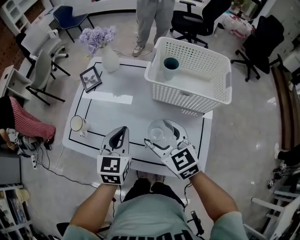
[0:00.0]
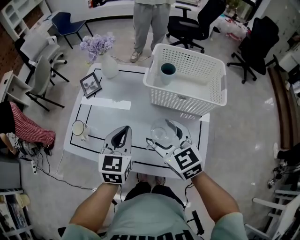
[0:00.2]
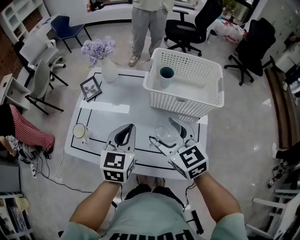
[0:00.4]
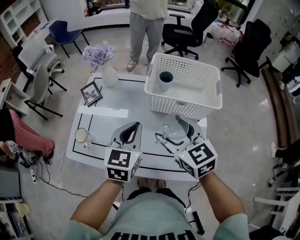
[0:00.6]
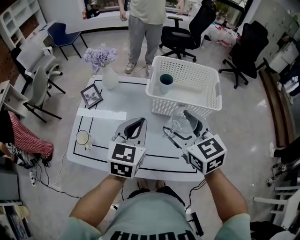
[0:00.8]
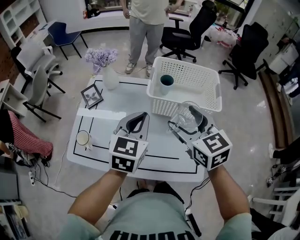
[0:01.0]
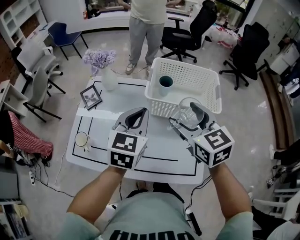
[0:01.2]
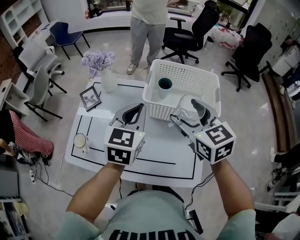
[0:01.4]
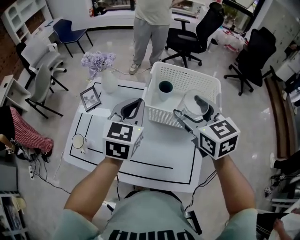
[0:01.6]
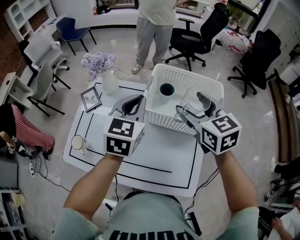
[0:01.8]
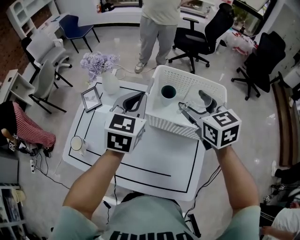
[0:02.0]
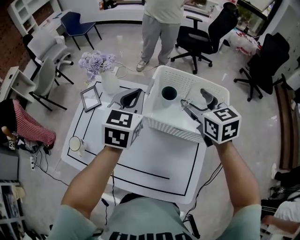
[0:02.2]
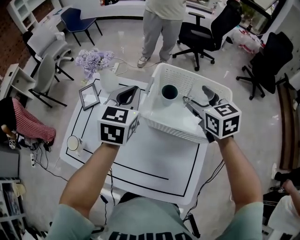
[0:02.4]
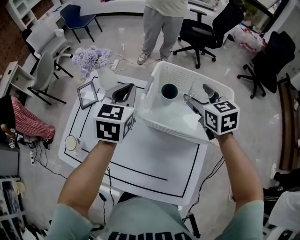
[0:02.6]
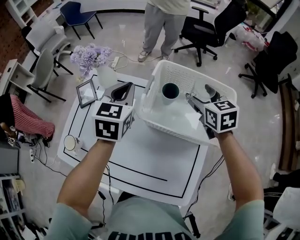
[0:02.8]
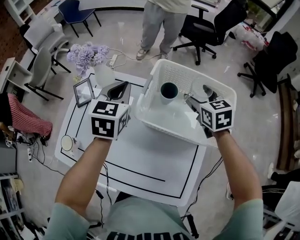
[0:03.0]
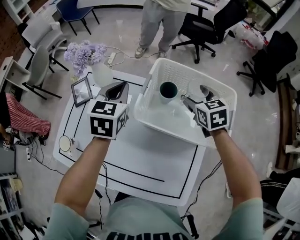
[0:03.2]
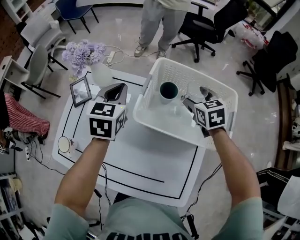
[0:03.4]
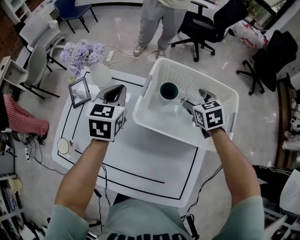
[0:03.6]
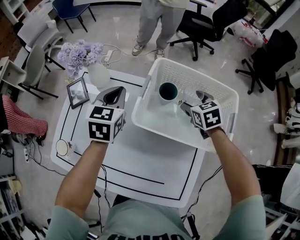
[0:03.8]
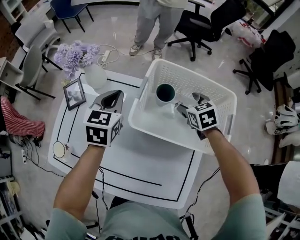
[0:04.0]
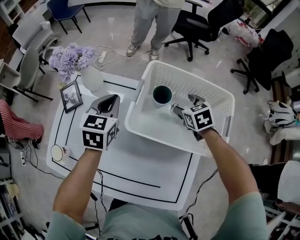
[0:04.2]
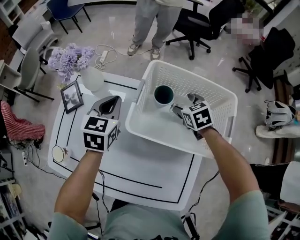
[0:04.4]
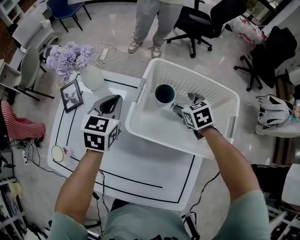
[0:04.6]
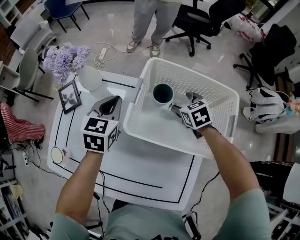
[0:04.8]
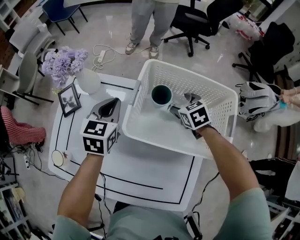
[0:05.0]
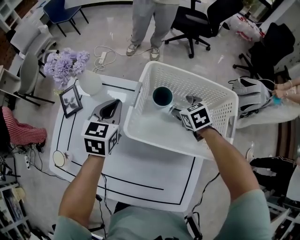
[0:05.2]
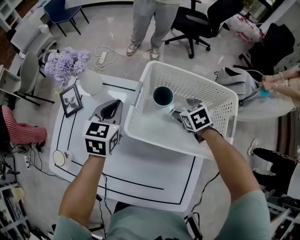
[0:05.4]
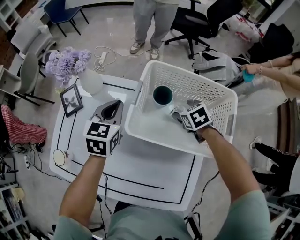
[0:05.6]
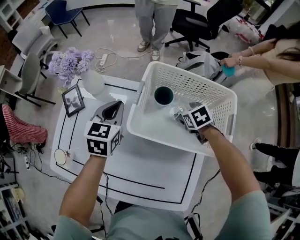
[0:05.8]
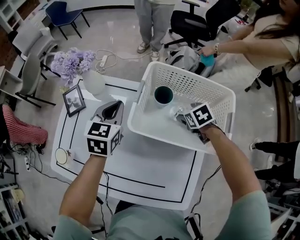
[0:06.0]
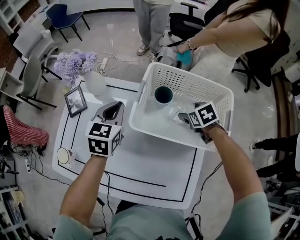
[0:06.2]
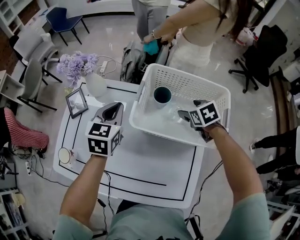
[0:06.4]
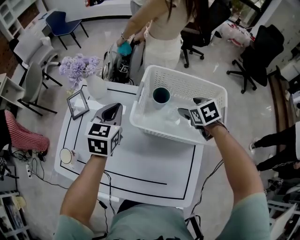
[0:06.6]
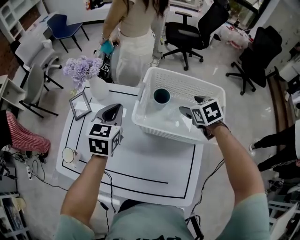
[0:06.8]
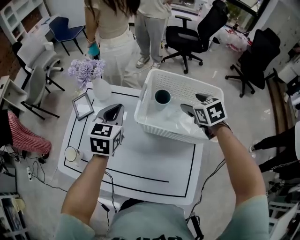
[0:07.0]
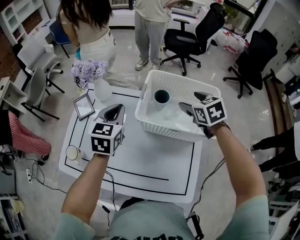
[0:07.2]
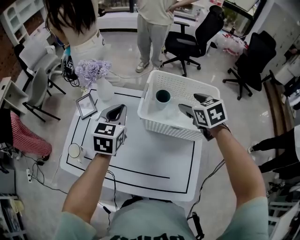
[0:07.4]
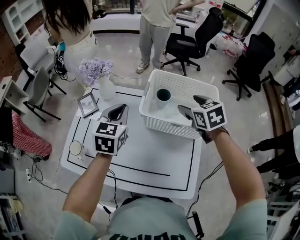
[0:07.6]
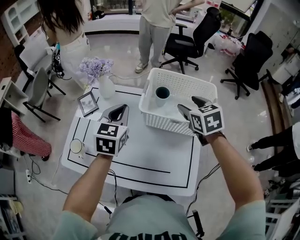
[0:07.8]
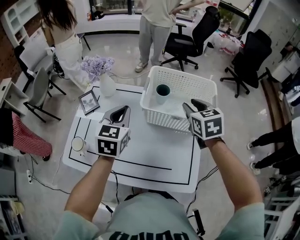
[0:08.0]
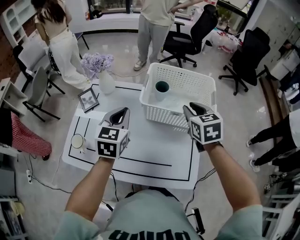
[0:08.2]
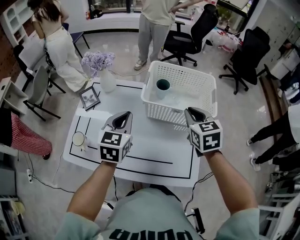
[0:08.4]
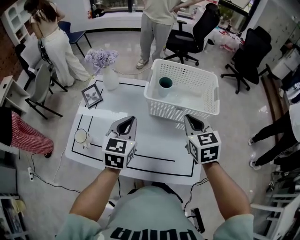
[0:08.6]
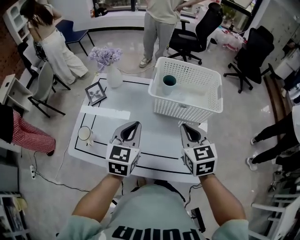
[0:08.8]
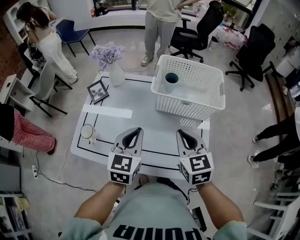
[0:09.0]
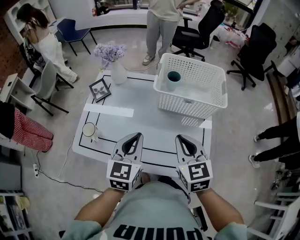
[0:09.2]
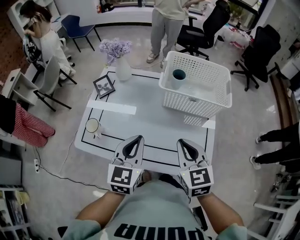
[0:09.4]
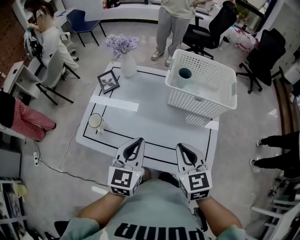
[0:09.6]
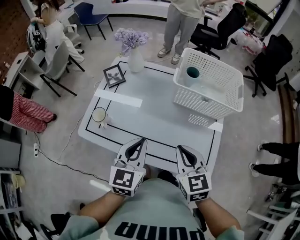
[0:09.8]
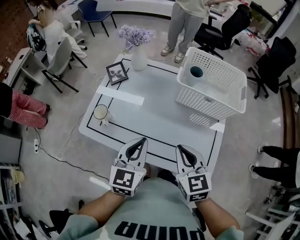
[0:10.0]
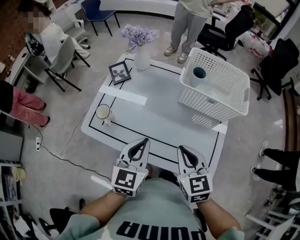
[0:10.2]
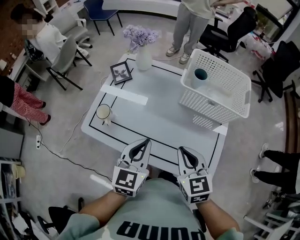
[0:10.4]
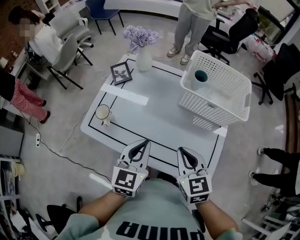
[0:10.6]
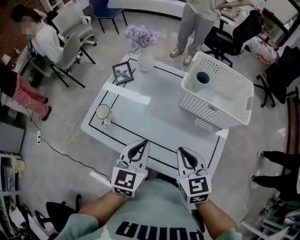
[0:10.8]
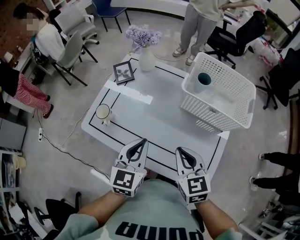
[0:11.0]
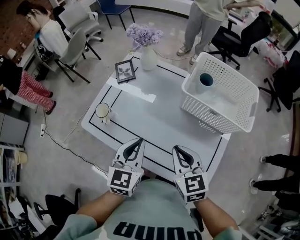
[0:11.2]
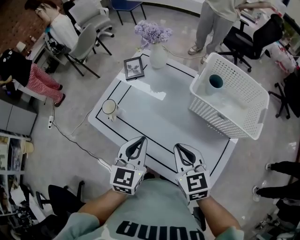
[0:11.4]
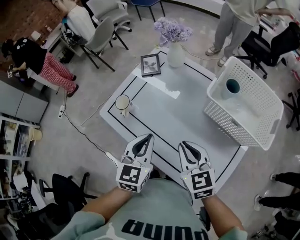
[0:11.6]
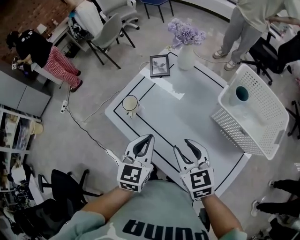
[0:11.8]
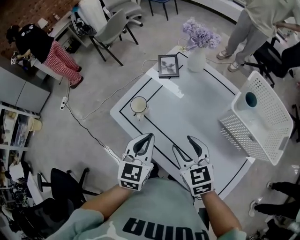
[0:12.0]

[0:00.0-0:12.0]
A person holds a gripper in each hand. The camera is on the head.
0:00.0 to 0:01.6: The left gripper is displaced upward, forward and to the right by about 20 cm; the right gripper shifts approximately 25 cm upward, to the right and forward.
0:01.6 to 0:03.0: The right gripper heads forward, downward and to the right, covering about 25 cm, while the left gripper heads forward and downward, covering some 15 cm.
0:03.0 to 0:04.4: The left gripper is displaced downward by roughly 10 cm. Meanwhile the right gripper shifts about 10 cm downward.
0:04.4 to 0:06.0: The right gripper changes place by some 5 cm.
0:06.0 to 0:07.6: The right gripper heads upward, covering some 20 cm, and changes its angle by about 20 degrees; the left gripper goes roughly 15 cm upward and backward.
0:07.6 to 0:09.0: Both grippers travel together backward, about 20 cm. The right gripper closes.
0:09.0 to 0:10.4: The left gripper goes about 5 cm backward, while the right gripper heads backward and to the left, covering roughly 10 cm.
0:10.4 to 0:12.0: The right gripper ends up approximately 15 cm from where it was, swivels about 30 degrees, and opens up. The left gripper ends up some 10 cm from where it was, and turns by approximately 20 degrees.

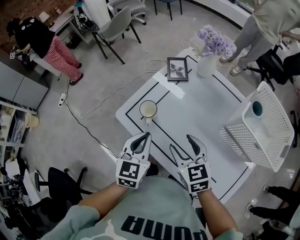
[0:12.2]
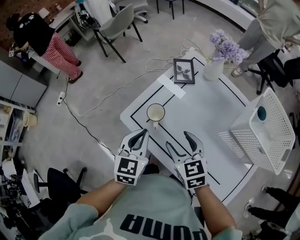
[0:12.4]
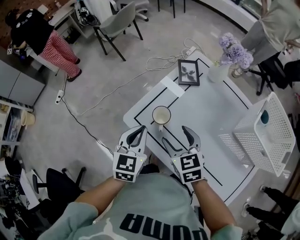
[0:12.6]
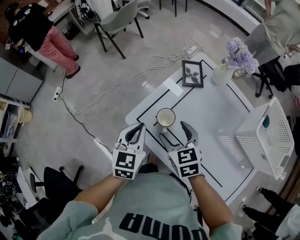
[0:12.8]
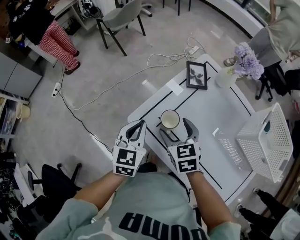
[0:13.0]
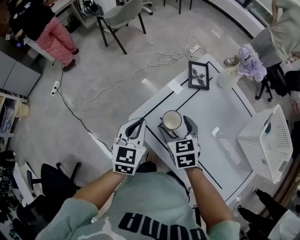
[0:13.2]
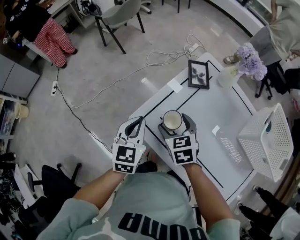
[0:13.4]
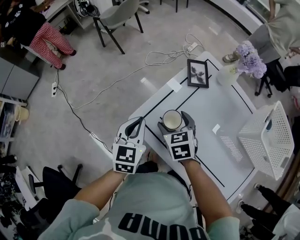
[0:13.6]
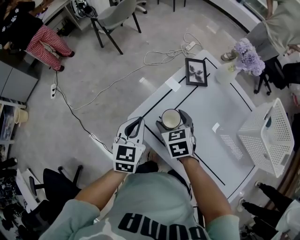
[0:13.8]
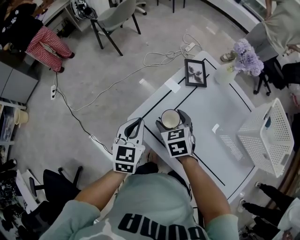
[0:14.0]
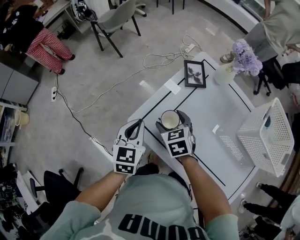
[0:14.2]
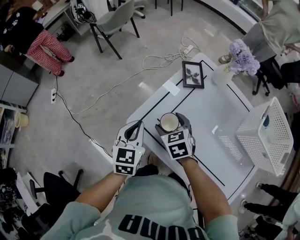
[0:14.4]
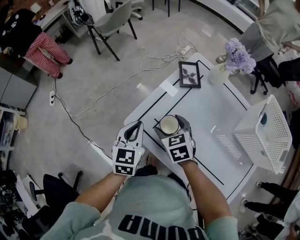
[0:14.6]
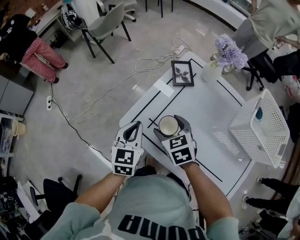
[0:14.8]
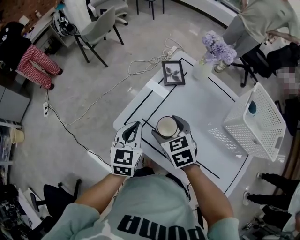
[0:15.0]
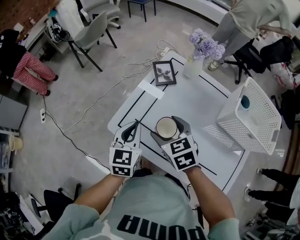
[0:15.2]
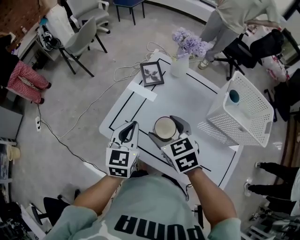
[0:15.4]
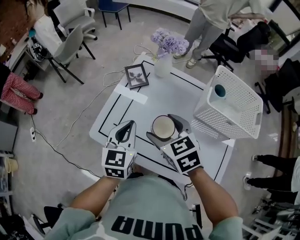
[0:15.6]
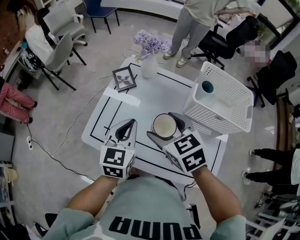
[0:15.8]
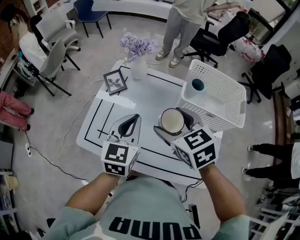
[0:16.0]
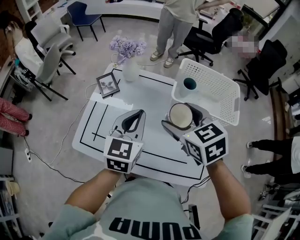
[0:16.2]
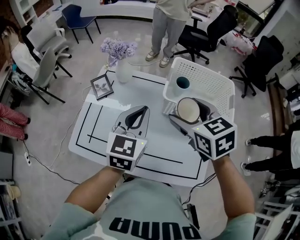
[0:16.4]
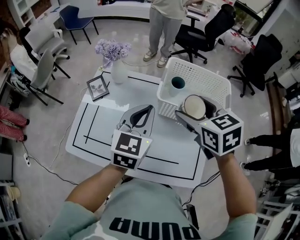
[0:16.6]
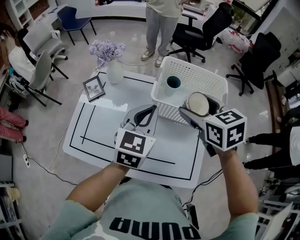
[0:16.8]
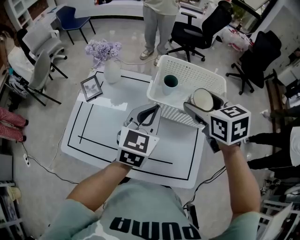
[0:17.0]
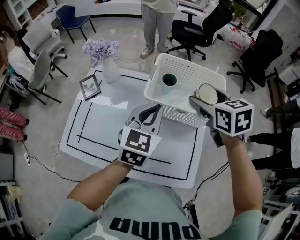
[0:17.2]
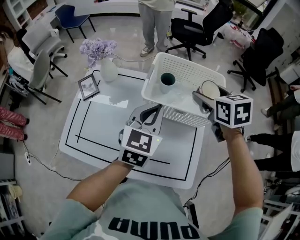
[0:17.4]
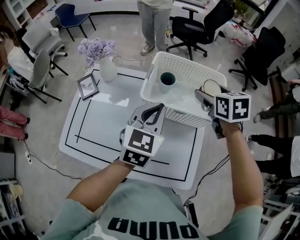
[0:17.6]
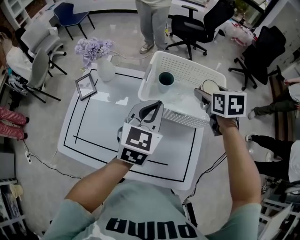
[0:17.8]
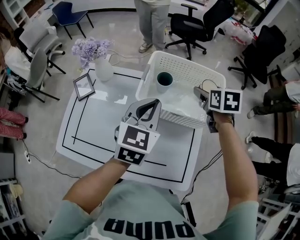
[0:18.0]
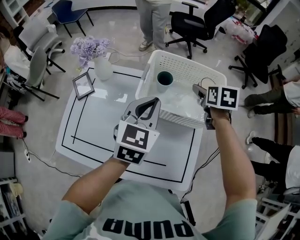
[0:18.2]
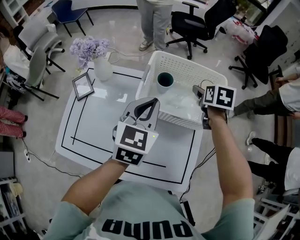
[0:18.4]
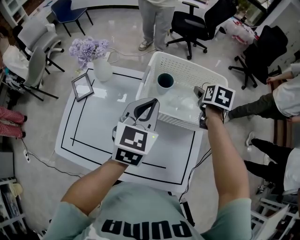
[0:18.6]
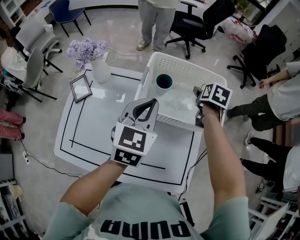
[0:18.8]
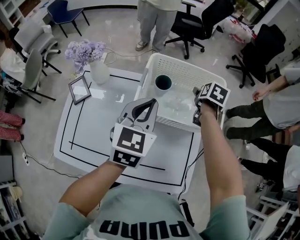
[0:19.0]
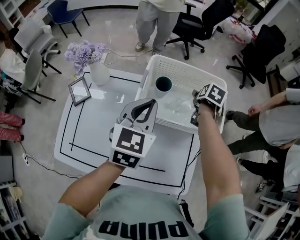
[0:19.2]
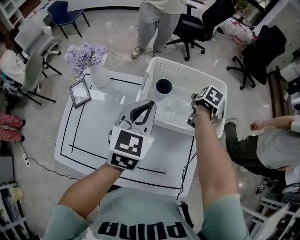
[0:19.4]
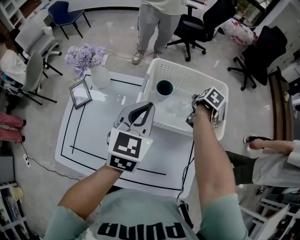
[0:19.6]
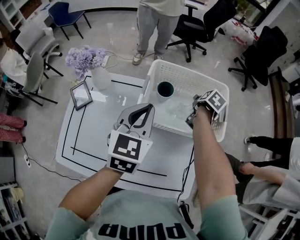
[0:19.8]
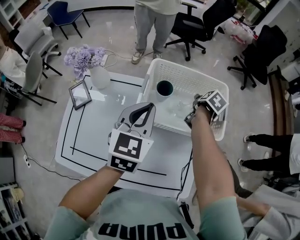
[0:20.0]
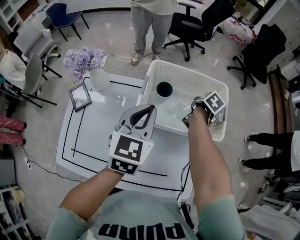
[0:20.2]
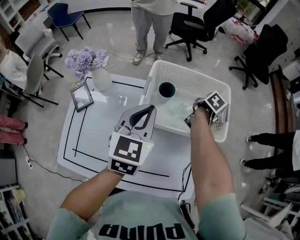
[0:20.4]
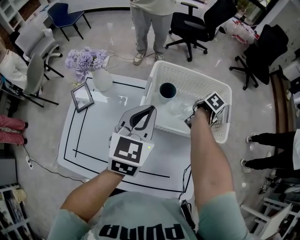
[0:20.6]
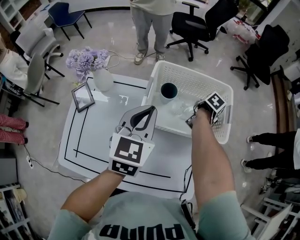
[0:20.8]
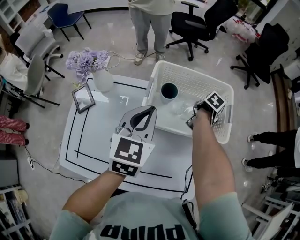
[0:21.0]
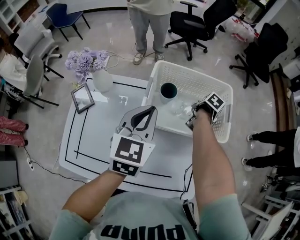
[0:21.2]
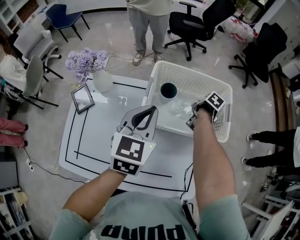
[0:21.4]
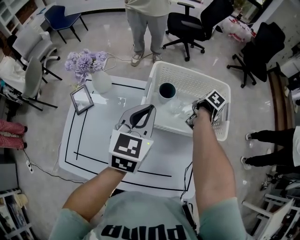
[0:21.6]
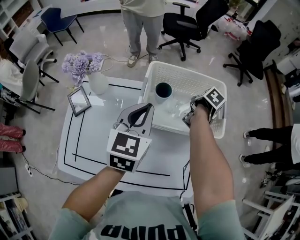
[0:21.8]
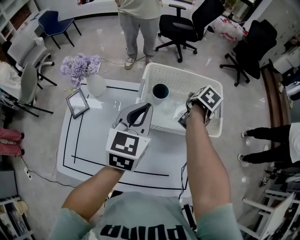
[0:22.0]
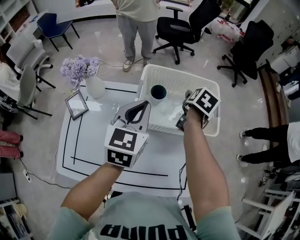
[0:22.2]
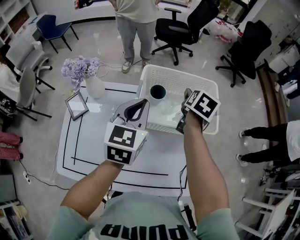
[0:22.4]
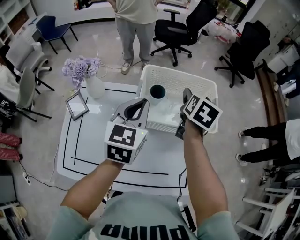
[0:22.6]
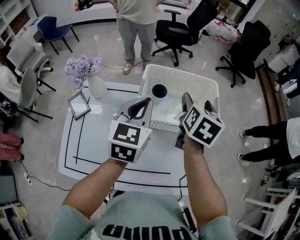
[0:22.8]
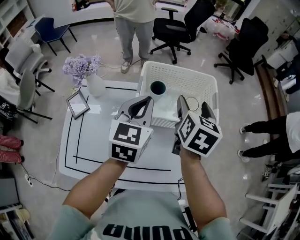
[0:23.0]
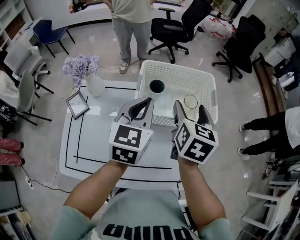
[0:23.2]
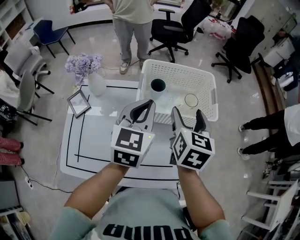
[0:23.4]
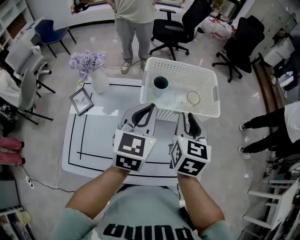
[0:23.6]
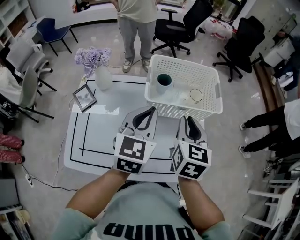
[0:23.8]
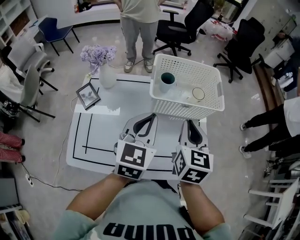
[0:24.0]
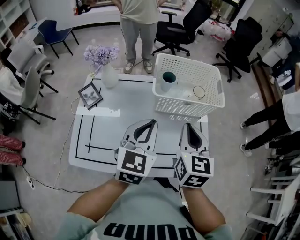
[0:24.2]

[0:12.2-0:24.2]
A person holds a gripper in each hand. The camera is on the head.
0:12.2 to 0:13.8: The left gripper travels to the left and forward by some 15 cm, while the right gripper shifts approximately 20 cm forward, to the left and downward.
0:13.8 to 0:15.2: The right gripper goes some 15 cm upward, to the right and backward. Meanwhile the left gripper is displaced to the right by approximately 10 cm.
0:15.2 to 0:16.6: The right gripper changes place by roughly 40 cm, and rotates some 20 degrees. Meanwhile the left gripper ends up about 35 cm from where it was, and swivels roughly 30 degrees.
0:16.6 to 0:18.2: The right gripper goes roughly 25 cm to the right, forward and downward, and changes its angle by roughly 30 degrees. The left gripper travels to the right and forward by about 10 cm.
0:18.2 to 0:19.8: The right gripper heads downward, covering approximately 10 cm, and twists approximately 40 degrees clockwise, seen from behind.
0:19.8 to 0:21.2: The right gripper ends up about 5 cm from where it was.
0:21.2 to 0:22.6: The right gripper heads upward, covering approximately 20 cm, and tips its fingers upward by some 40 degrees.
0:22.6 to 0:24.2: The right gripper heads backward, covering roughly 30 cm, turns by some 20 degrees, and closes its fingers. Meanwhile the left gripper goes about 20 cm backward.
